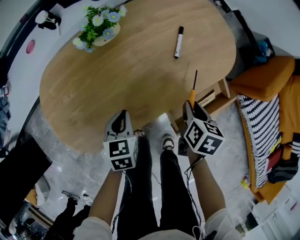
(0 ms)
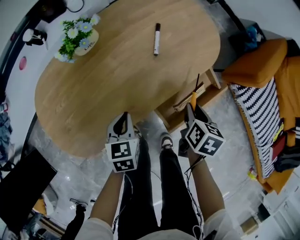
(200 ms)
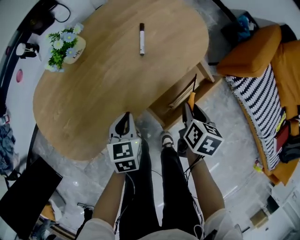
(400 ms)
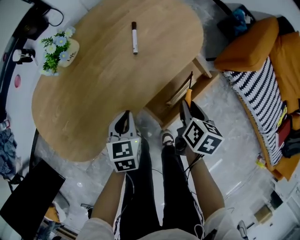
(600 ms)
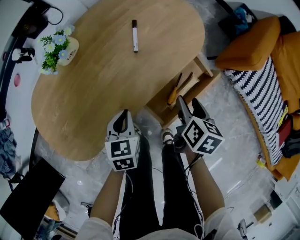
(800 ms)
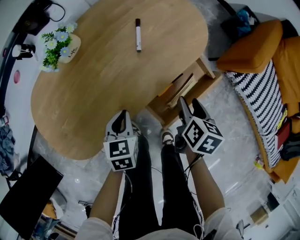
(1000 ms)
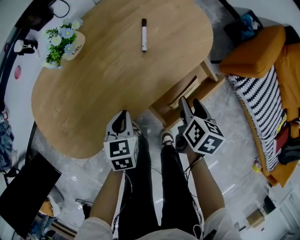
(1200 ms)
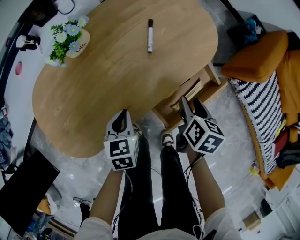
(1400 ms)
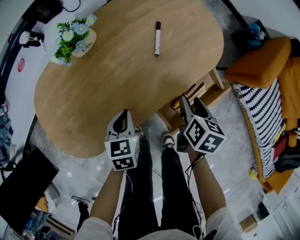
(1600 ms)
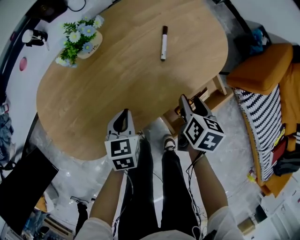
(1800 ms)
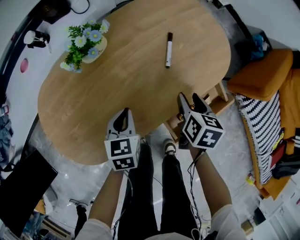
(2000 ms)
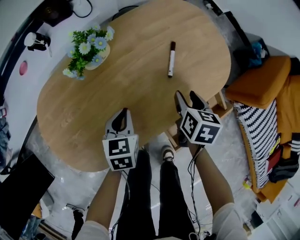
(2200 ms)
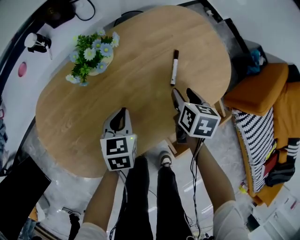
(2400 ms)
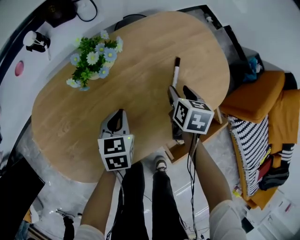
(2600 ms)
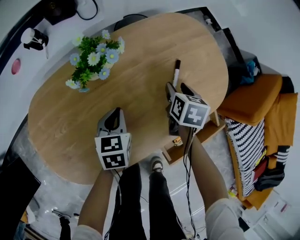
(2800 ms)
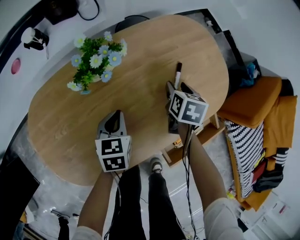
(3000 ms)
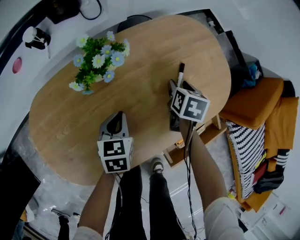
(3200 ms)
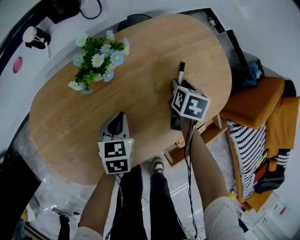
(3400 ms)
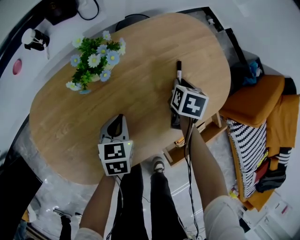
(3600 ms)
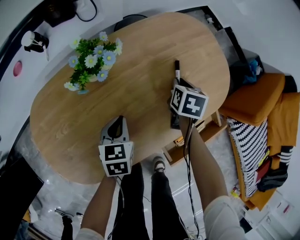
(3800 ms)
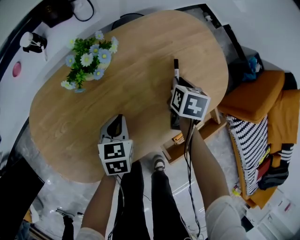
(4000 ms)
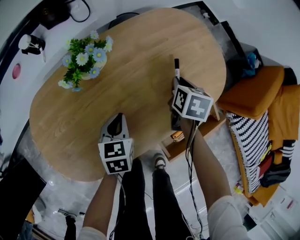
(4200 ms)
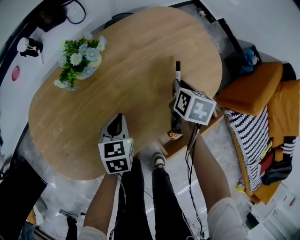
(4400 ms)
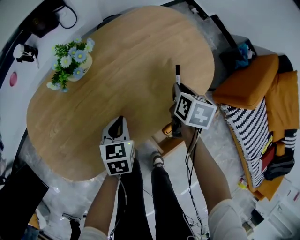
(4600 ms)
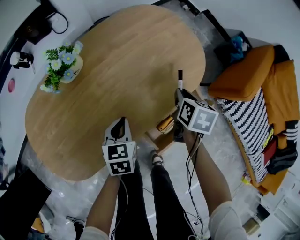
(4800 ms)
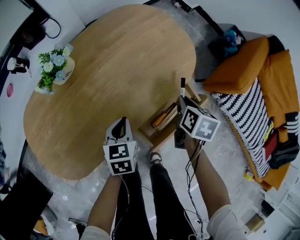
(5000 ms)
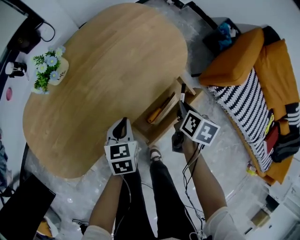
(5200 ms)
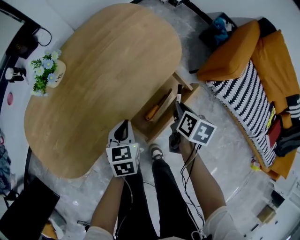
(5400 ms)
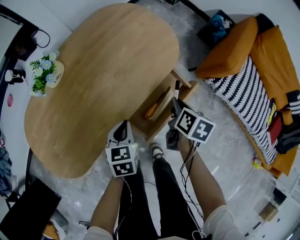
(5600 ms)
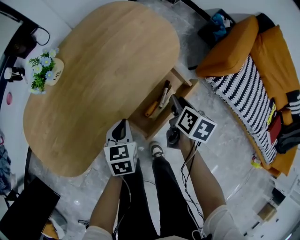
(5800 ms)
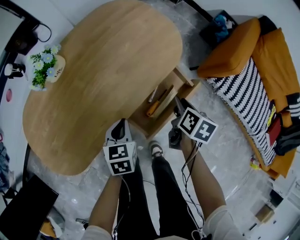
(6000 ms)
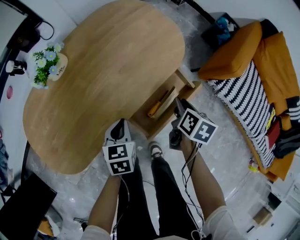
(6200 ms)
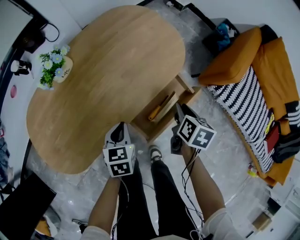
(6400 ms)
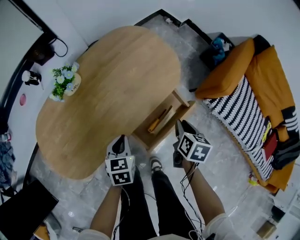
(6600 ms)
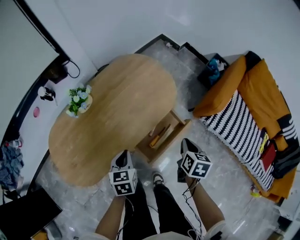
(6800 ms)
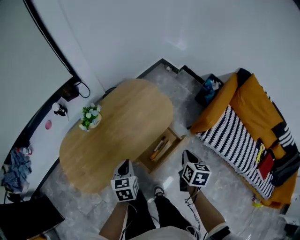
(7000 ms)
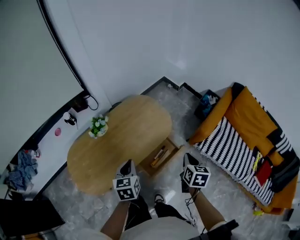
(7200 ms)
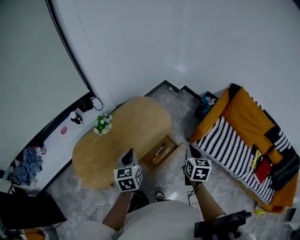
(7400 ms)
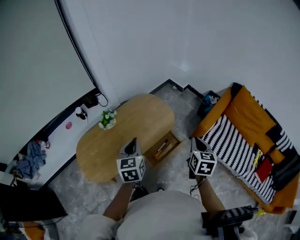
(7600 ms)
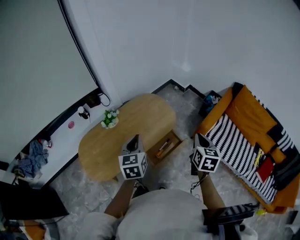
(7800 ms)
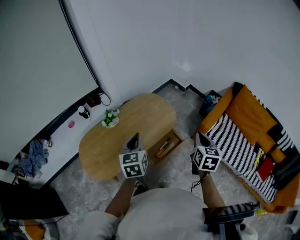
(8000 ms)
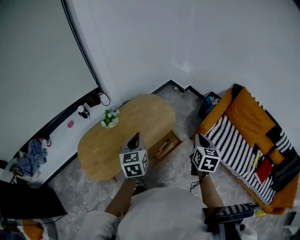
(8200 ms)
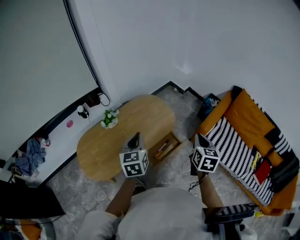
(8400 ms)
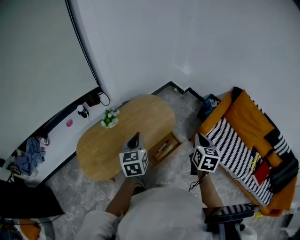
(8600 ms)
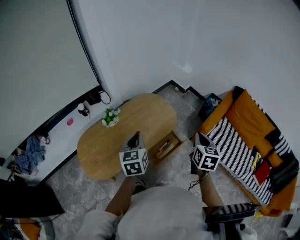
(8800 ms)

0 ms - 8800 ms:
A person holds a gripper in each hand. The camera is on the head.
0 ms - 1400 ms: Both grippers move to the right, about 10 cm. The right gripper opens its fingers.
1400 ms - 3000 ms: The left gripper heads forward and to the left, covering approximately 15 cm. The right gripper shifts approximately 25 cm forward and to the left, and turns by approximately 20 degrees.
3000 ms - 4400 ms: Both grippers move to the right, some 5 cm. The right gripper closes.
4400 ms - 5800 ms: Both grippers travel together to the right and backward, roughly 20 cm. The right gripper swivels roughly 30 degrees.
5800 ms - 7400 ms: Both grippers move upward, roughly 40 cm. The right gripper turns by roughly 30 degrees, and closes its fingers. Meanwhile the left gripper turns by roughly 20 degrees.
7400 ms - 8800 ms: The grippers both shift upward by some 5 cm.

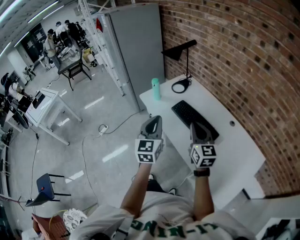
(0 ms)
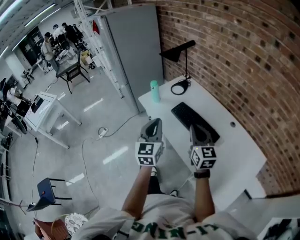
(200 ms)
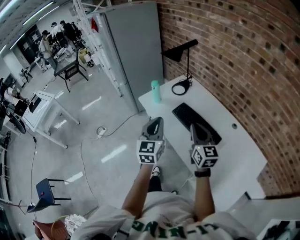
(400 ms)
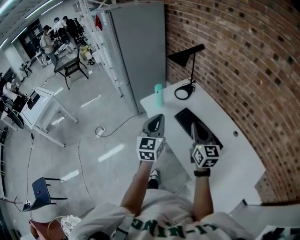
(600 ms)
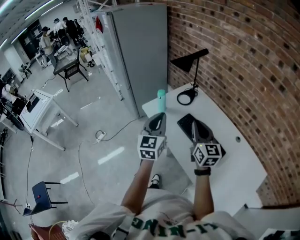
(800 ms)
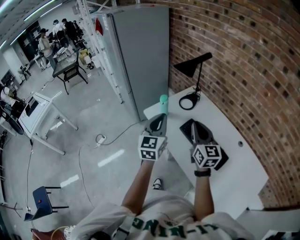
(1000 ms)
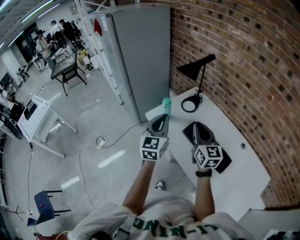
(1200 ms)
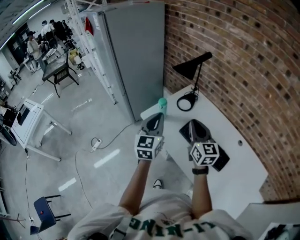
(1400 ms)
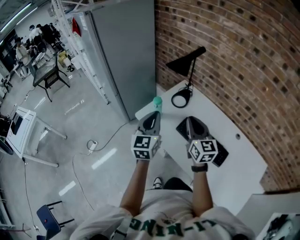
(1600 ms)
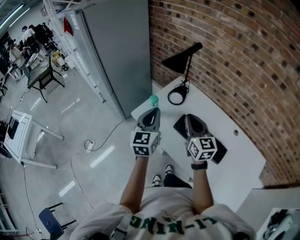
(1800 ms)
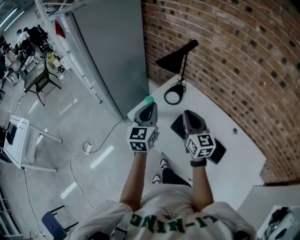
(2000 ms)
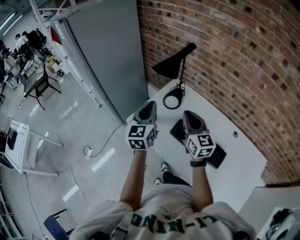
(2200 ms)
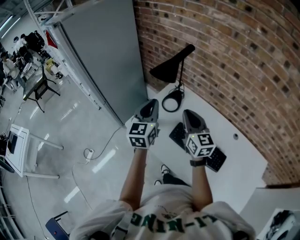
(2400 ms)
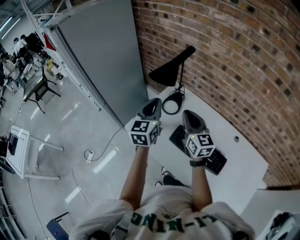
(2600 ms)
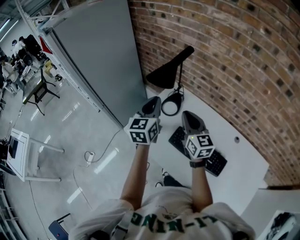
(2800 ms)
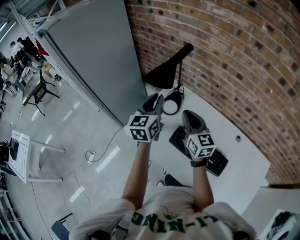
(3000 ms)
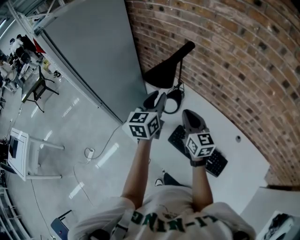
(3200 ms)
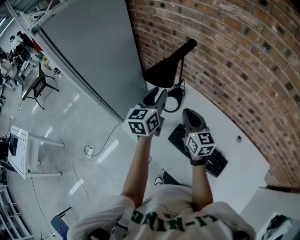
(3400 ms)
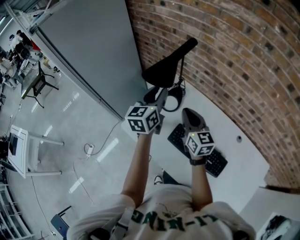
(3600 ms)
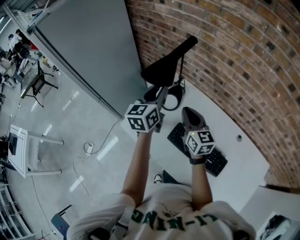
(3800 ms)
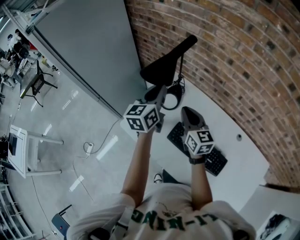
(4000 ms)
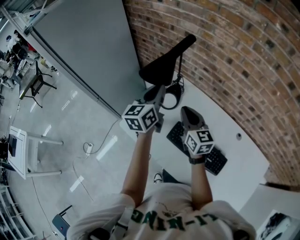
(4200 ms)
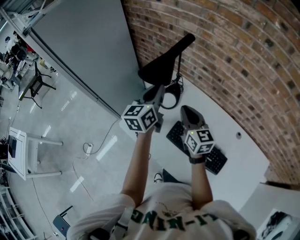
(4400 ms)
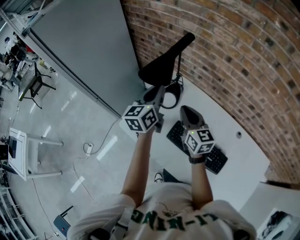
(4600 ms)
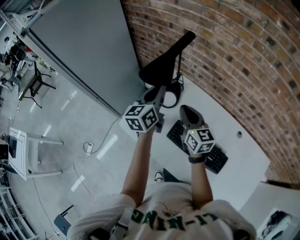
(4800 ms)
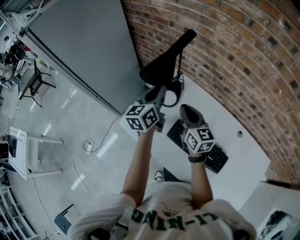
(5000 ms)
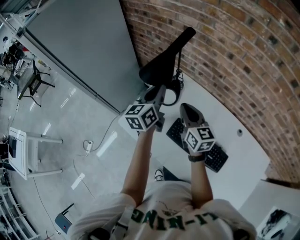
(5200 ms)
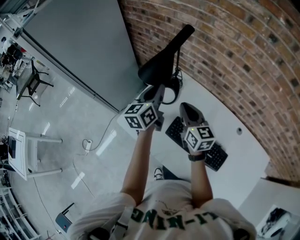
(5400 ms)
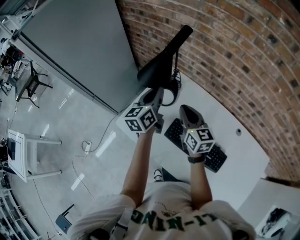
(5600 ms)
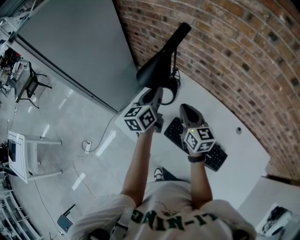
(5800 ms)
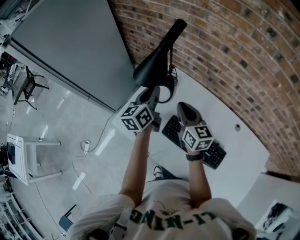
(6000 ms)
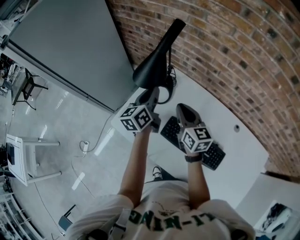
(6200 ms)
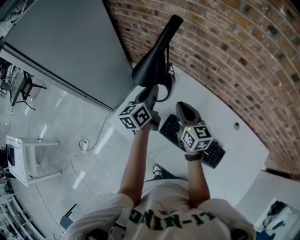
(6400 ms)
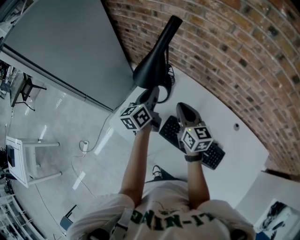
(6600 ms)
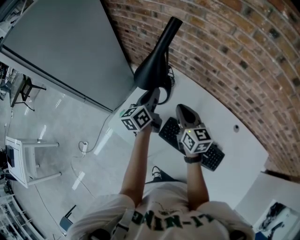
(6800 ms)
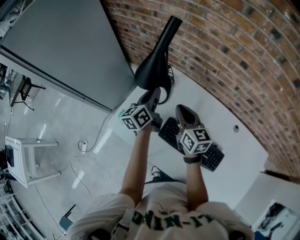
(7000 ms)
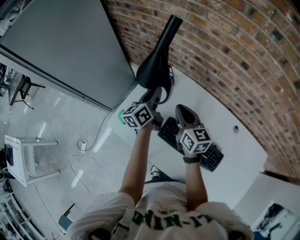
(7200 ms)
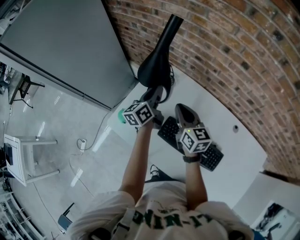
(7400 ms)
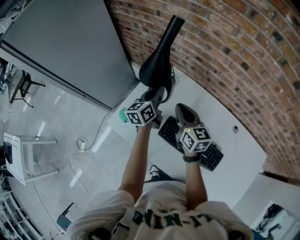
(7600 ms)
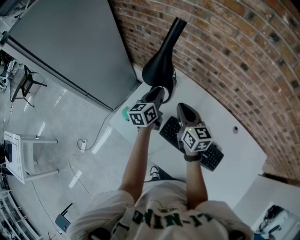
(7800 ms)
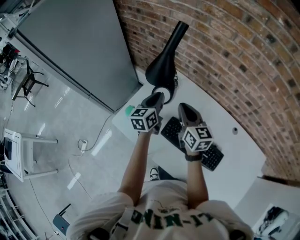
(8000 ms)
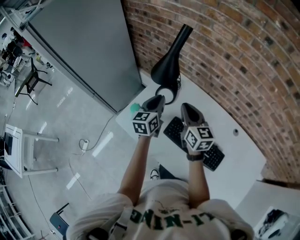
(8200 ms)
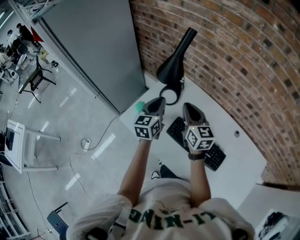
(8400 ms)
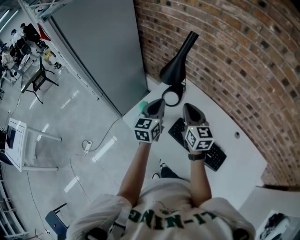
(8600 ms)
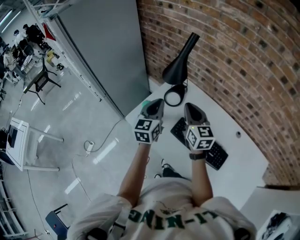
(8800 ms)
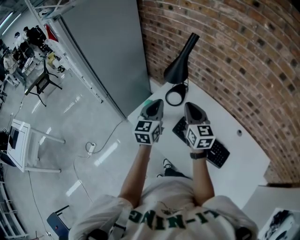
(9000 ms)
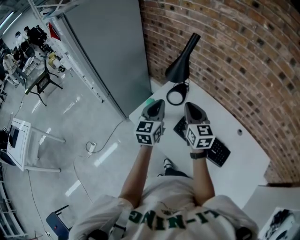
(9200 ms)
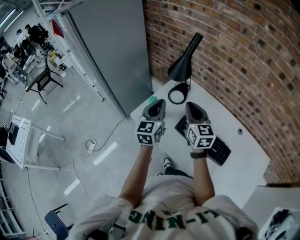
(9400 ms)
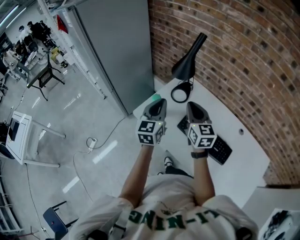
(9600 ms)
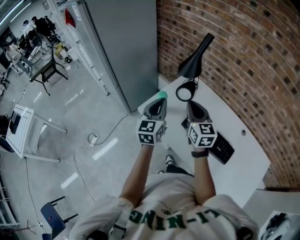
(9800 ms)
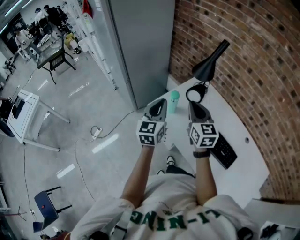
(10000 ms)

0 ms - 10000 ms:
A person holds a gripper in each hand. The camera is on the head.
0 ms - 1400 ms: The grippers both shift forward and to the left by approximately 25 cm.
1400 ms - 2800 ms: The two grippers go roughly 20 cm forward.
2800 ms - 4200 ms: The left gripper goes about 5 cm forward, and opens and closes again; the right gripper moves some 5 cm.
4200 ms - 5800 ms: The left gripper travels downward by roughly 5 cm.
5800 ms - 7200 ms: The left gripper travels downward by about 5 cm.
7200 ms - 8600 ms: The left gripper goes approximately 15 cm backward and upward, and changes its angle by approximately 30 degrees, while the right gripper shifts roughly 10 cm upward and backward.
8600 ms - 10000 ms: The grippers both shift to the left and backward by approximately 15 cm.

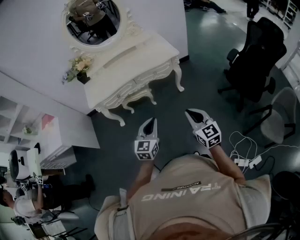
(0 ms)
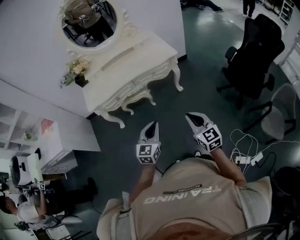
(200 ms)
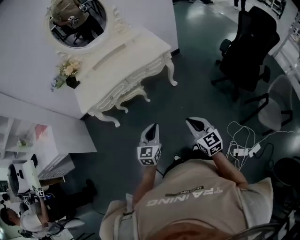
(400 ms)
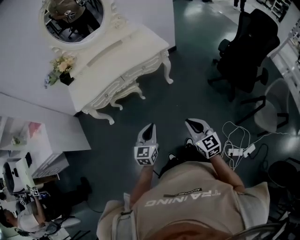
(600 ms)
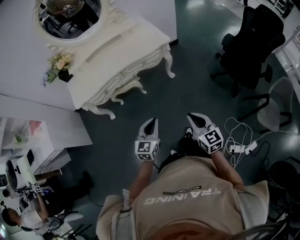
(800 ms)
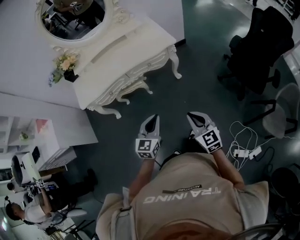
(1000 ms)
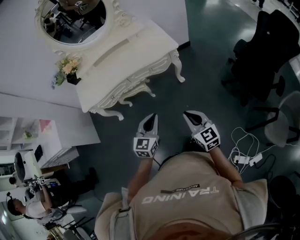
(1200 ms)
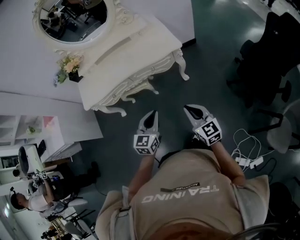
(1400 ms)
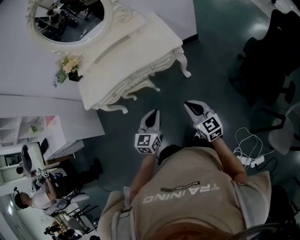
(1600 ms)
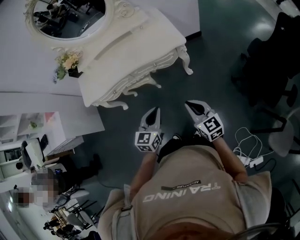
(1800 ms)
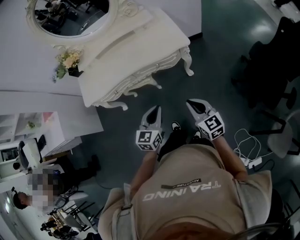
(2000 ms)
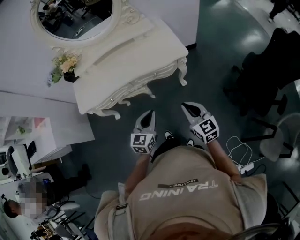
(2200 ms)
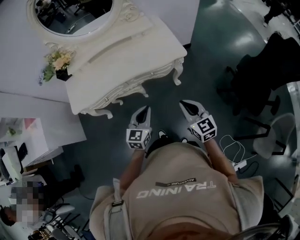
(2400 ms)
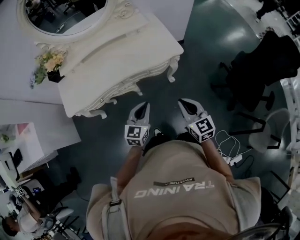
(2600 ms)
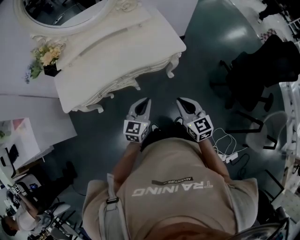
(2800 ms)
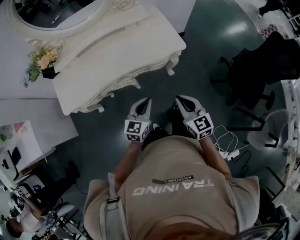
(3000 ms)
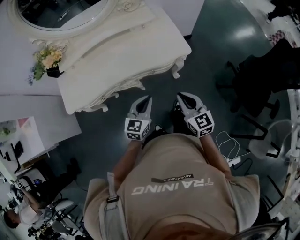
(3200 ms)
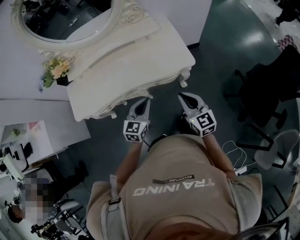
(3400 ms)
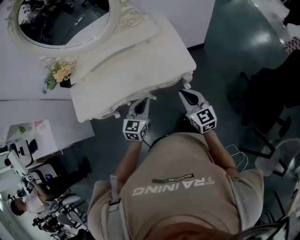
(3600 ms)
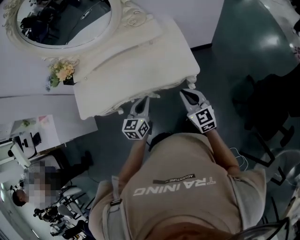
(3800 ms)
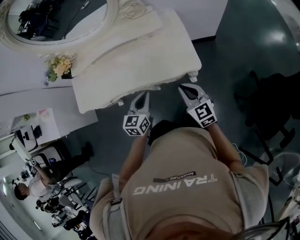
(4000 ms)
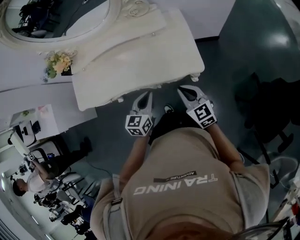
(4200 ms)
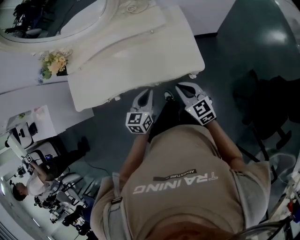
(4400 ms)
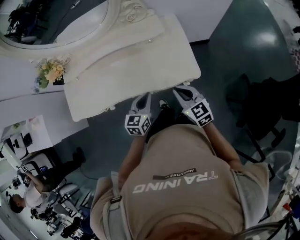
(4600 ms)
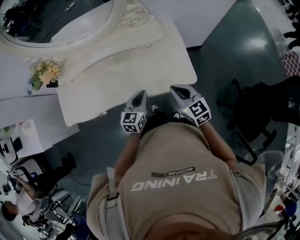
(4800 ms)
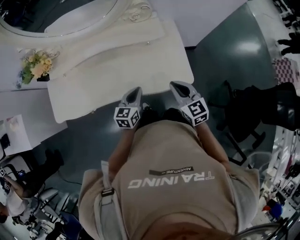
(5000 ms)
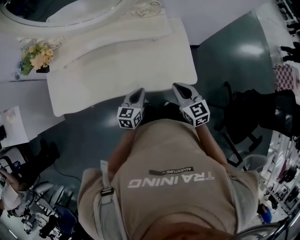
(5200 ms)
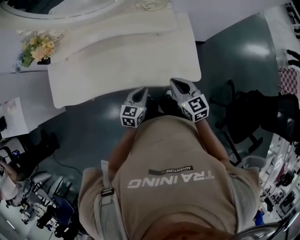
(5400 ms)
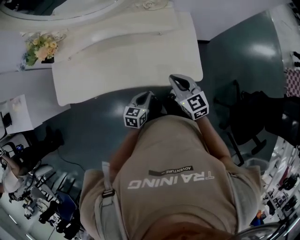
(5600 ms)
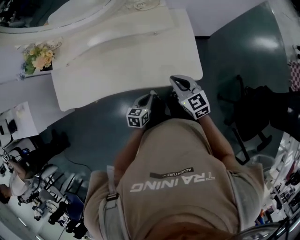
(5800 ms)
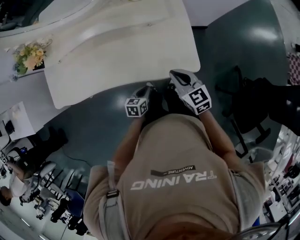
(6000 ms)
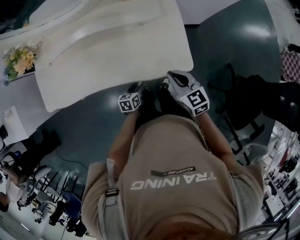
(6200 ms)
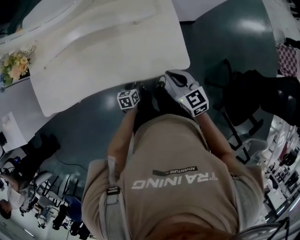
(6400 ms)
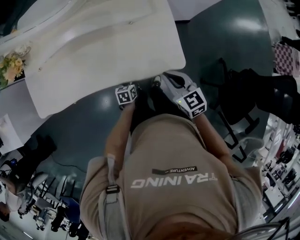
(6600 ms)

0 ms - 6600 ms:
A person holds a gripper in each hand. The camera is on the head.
0 ms - 1600 ms: The right gripper moves forward, about 25 cm. Meanwhile the left gripper shifts some 25 cm forward and to the right.
1600 ms - 3200 ms: Both grippers move forward and to the left, approximately 25 cm.
3200 ms - 5000 ms: The two grippers go some 25 cm forward. The left gripper changes its angle by about 20 degrees.
5000 ms - 6600 ms: The left gripper goes approximately 25 cm downward, rotates approximately 30 degrees, and opens. The right gripper moves downward, roughly 5 cm.
